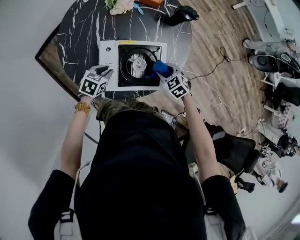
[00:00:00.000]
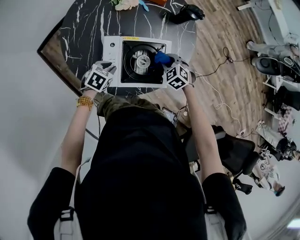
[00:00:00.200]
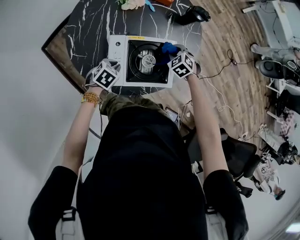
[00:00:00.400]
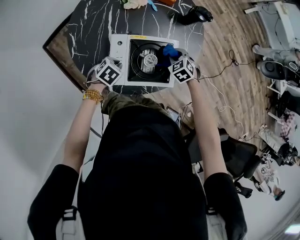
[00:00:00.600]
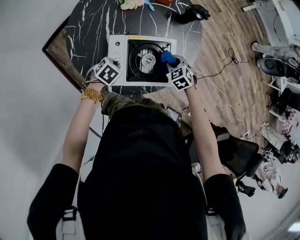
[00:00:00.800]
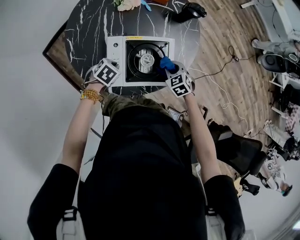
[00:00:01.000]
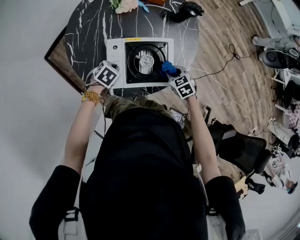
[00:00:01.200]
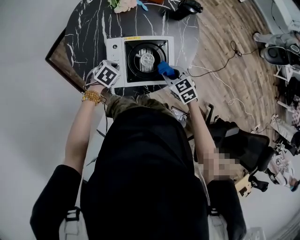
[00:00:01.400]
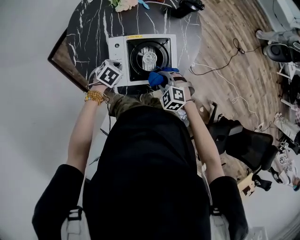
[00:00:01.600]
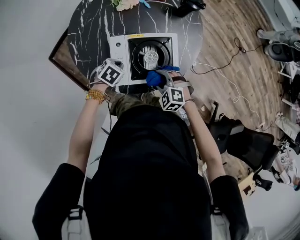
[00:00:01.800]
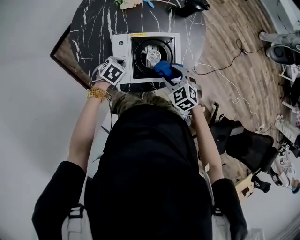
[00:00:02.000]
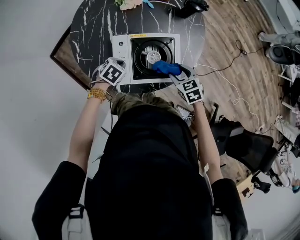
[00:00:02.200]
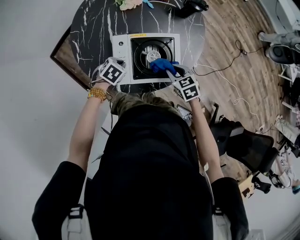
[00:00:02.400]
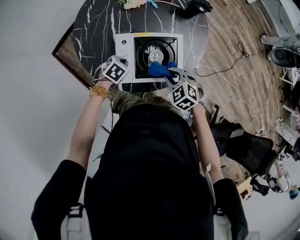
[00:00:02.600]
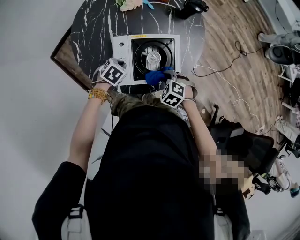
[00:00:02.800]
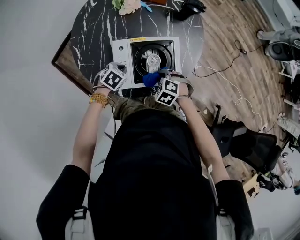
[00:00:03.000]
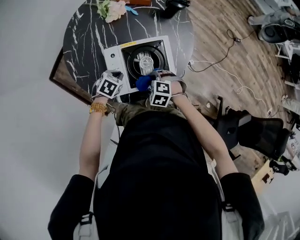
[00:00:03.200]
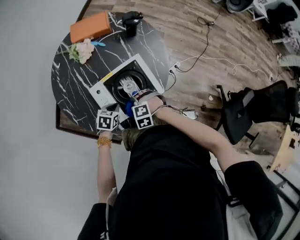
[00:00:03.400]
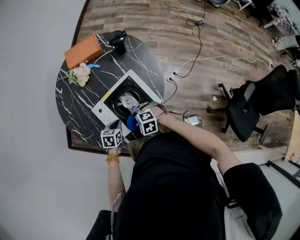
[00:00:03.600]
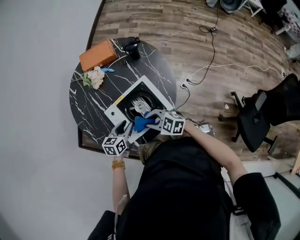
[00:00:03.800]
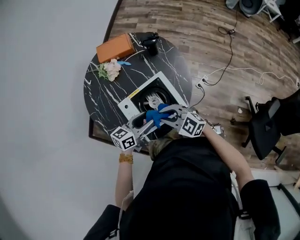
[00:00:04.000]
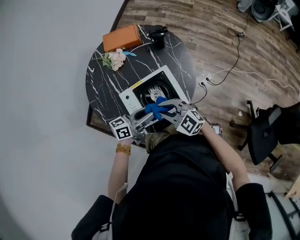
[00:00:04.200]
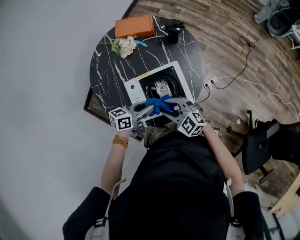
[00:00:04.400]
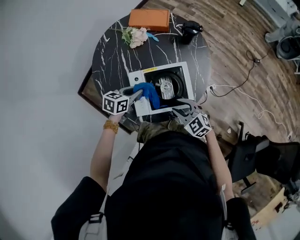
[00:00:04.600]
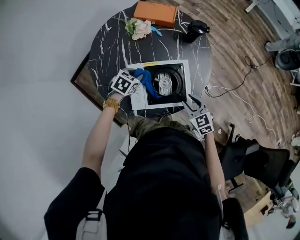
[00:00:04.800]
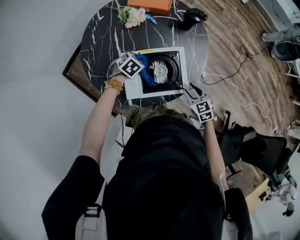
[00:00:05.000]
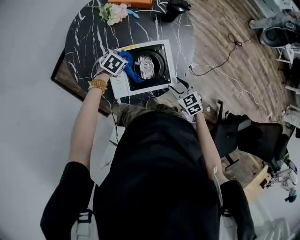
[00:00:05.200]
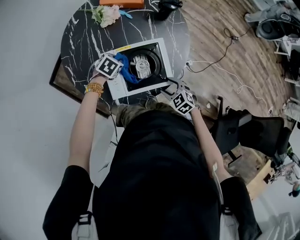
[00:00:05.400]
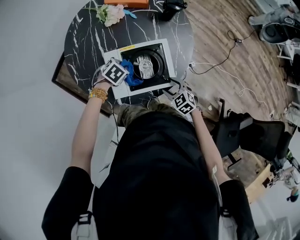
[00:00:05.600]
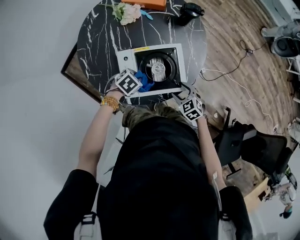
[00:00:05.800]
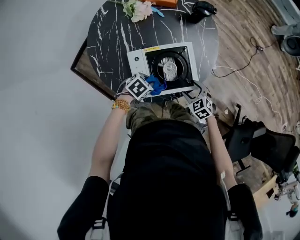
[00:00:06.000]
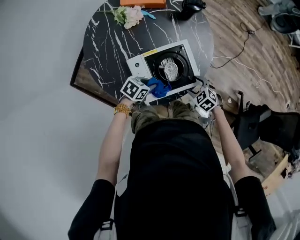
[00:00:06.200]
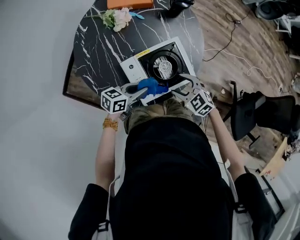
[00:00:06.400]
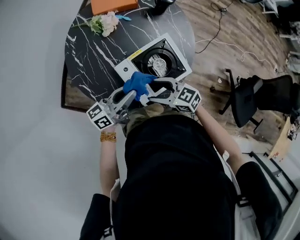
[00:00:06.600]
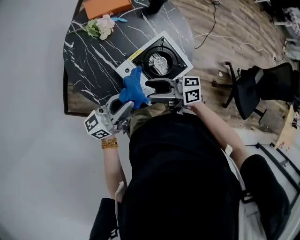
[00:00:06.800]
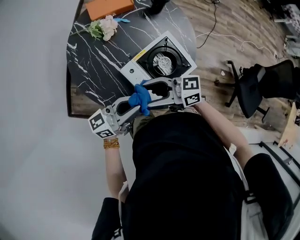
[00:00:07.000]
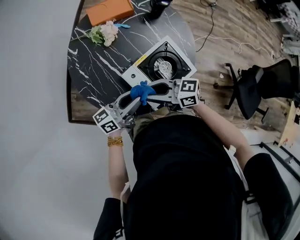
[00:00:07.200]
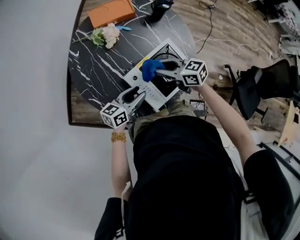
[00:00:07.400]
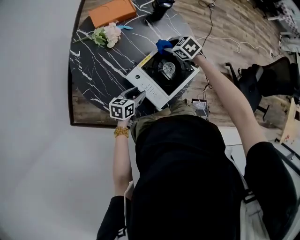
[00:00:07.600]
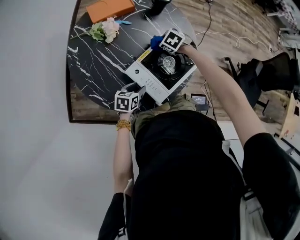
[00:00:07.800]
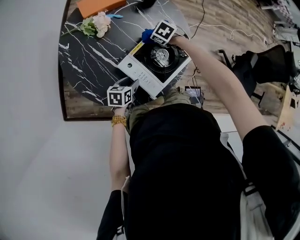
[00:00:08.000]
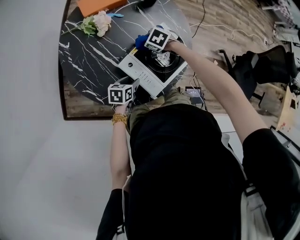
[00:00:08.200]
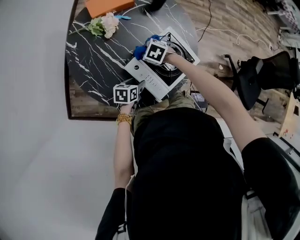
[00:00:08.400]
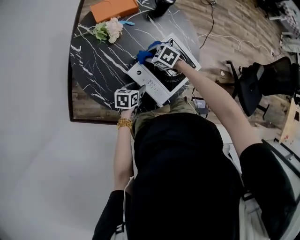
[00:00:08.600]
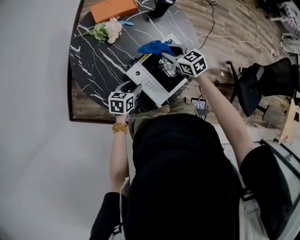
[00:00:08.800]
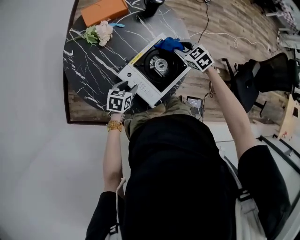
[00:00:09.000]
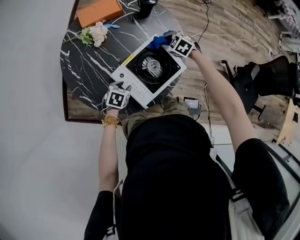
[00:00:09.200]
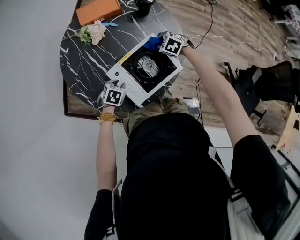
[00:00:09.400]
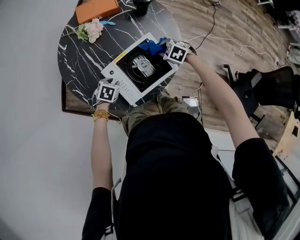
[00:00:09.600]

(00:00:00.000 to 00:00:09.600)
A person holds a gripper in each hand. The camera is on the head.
00:00:00.000 - 00:00:01.600: The right gripper goes some 10 cm backward and to the left, while the left gripper turns by about 20 degrees.
00:00:01.600 - 00:00:03.200: The right gripper opens, then closes again.
00:00:03.200 - 00:00:04.800: The left gripper travels upward and back again, roughly 15 cm each way, and opens, then closes once more, while the right gripper shifts by some 10 cm, and tilts its fingers about 30 degrees upward.
00:00:04.800 - 00:00:06.400: The left gripper changes place by some 10 cm, and tips its fingers upward by roughly 40 degrees. Meanwhile the right gripper goes downward and returns, some 5 cm each way, and opens.
00:00:06.400 - 00:00:08.000: The right gripper ends up some 20 cm from where it was, swivels about 30 degrees, and closes, while the left gripper heads downward, covering some 10 cm, turns by approximately 20 degrees, and opens its fingers.
00:00:08.000 - 00:00:09.600: The right gripper moves some 10 cm upward and comes back, and rotates some 20 degrees. Meanwhile the left gripper turns by approximately 30 degrees.

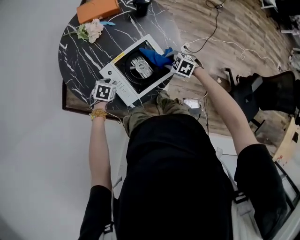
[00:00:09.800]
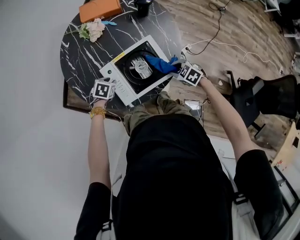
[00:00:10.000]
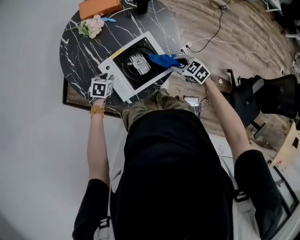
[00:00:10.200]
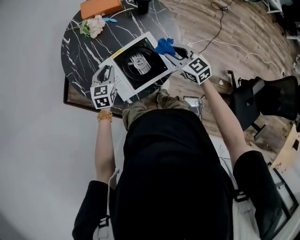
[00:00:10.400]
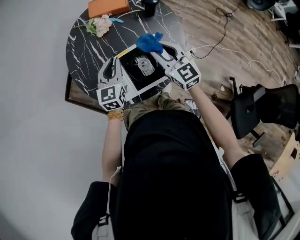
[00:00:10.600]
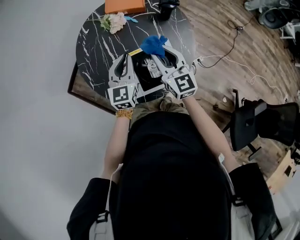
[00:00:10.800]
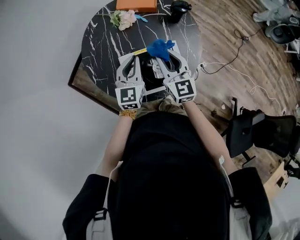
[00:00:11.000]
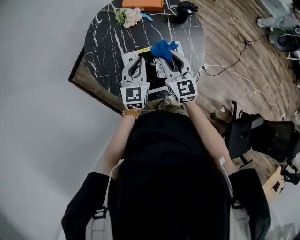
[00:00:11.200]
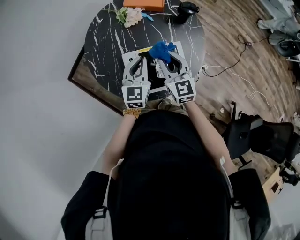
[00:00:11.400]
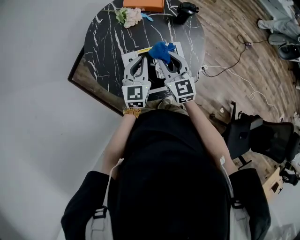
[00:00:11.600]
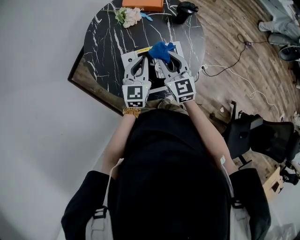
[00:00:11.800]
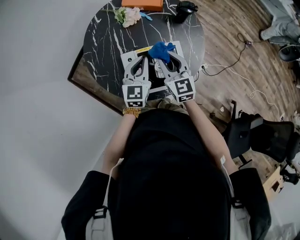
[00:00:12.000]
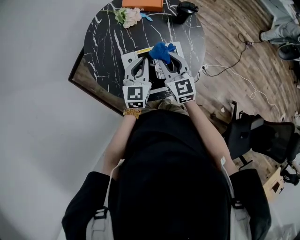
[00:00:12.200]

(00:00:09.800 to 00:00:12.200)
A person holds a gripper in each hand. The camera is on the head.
00:00:09.800 - 00:00:11.000: The two grippers go roughly 25 cm upward. The right gripper tips its fingers upward by approximately 50 degrees; the left gripper tips its fingers upward by roughly 60 degrees, and closes its fingers.
00:00:11.000 - 00:00:12.200: There are only small adjustments of the grippers.

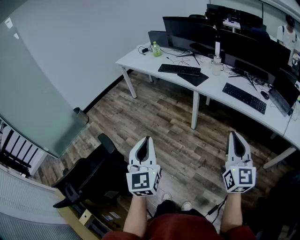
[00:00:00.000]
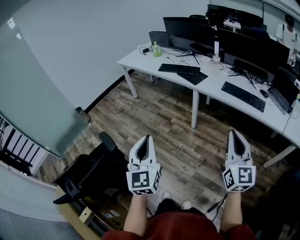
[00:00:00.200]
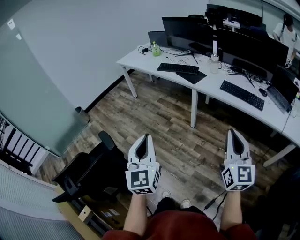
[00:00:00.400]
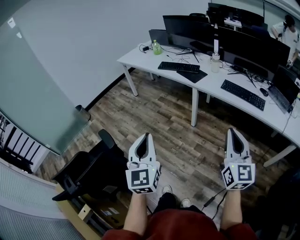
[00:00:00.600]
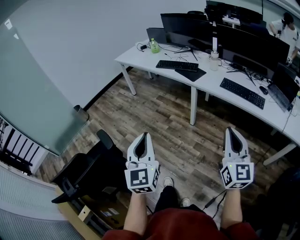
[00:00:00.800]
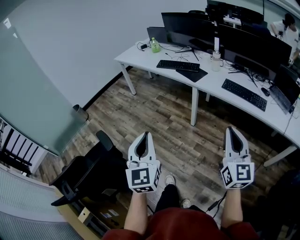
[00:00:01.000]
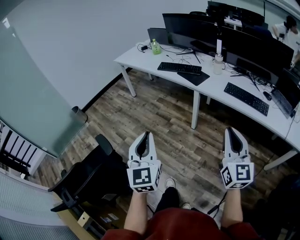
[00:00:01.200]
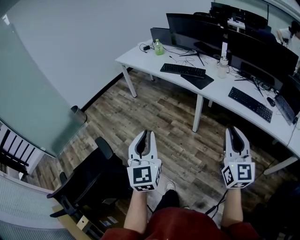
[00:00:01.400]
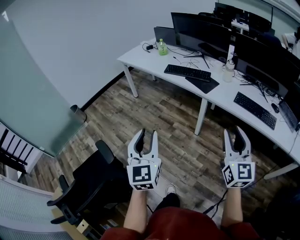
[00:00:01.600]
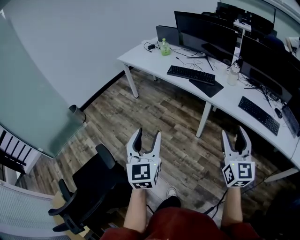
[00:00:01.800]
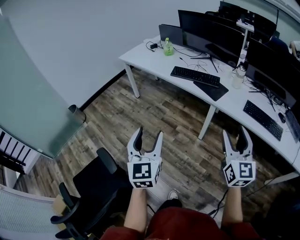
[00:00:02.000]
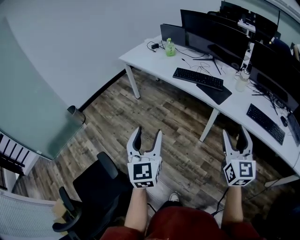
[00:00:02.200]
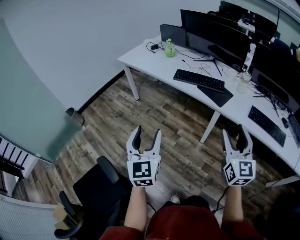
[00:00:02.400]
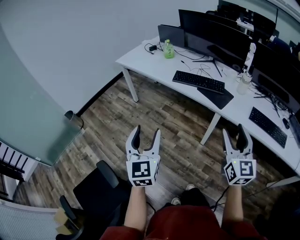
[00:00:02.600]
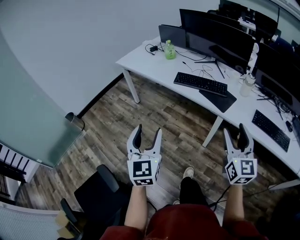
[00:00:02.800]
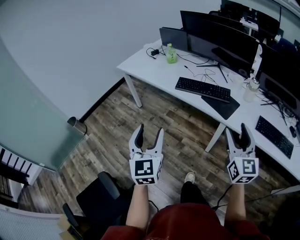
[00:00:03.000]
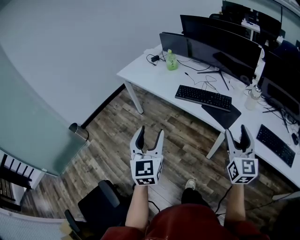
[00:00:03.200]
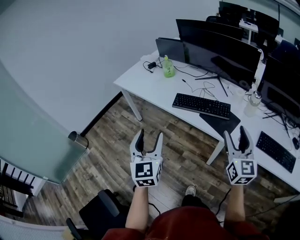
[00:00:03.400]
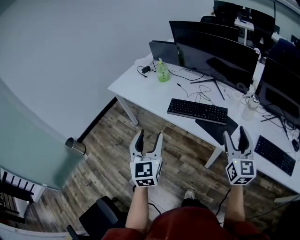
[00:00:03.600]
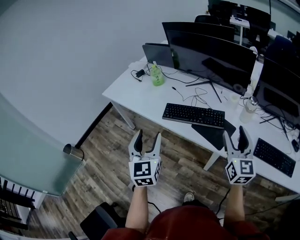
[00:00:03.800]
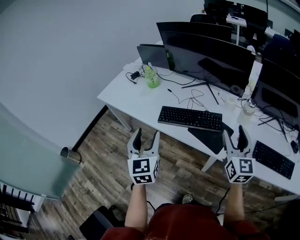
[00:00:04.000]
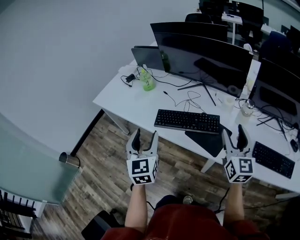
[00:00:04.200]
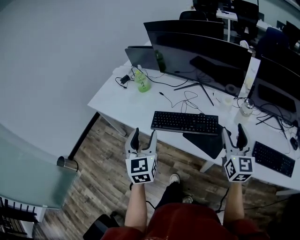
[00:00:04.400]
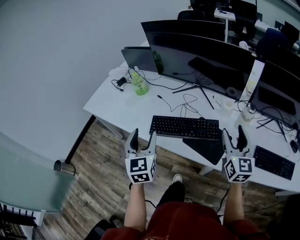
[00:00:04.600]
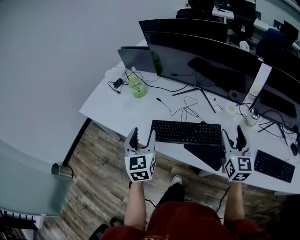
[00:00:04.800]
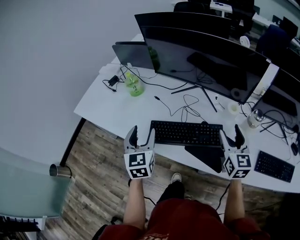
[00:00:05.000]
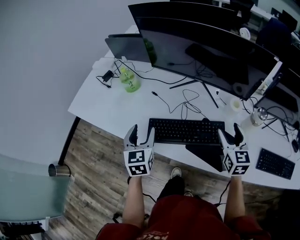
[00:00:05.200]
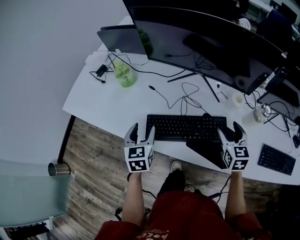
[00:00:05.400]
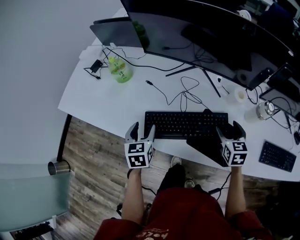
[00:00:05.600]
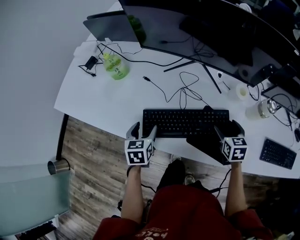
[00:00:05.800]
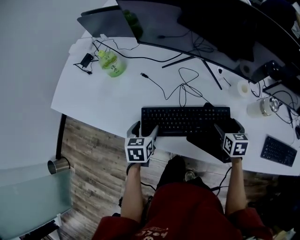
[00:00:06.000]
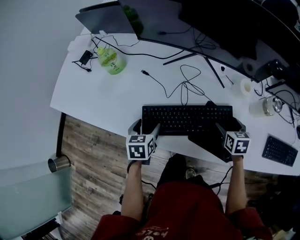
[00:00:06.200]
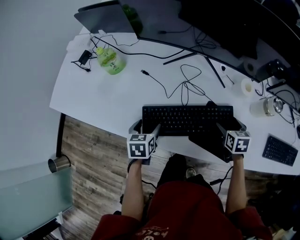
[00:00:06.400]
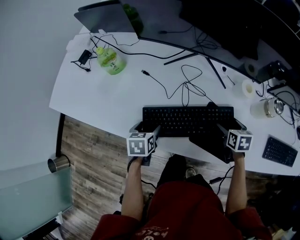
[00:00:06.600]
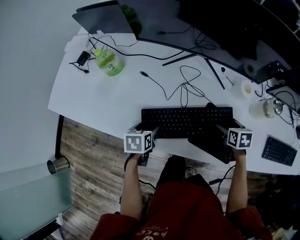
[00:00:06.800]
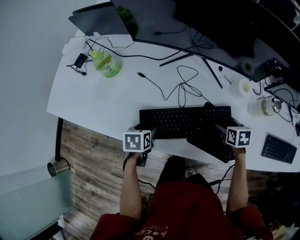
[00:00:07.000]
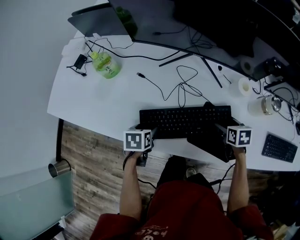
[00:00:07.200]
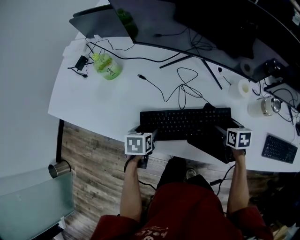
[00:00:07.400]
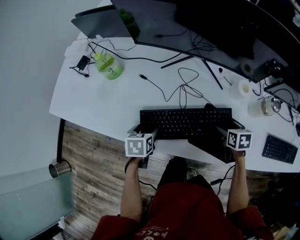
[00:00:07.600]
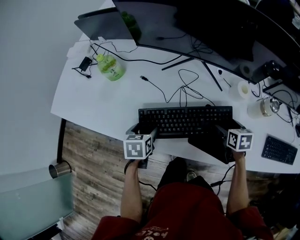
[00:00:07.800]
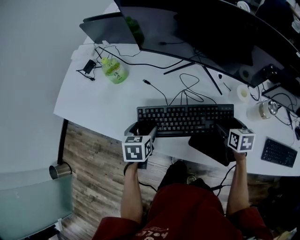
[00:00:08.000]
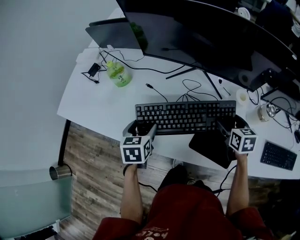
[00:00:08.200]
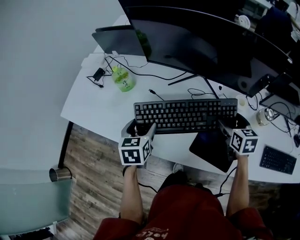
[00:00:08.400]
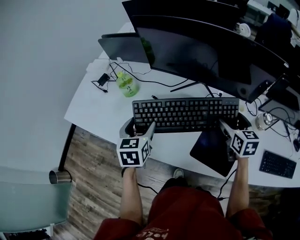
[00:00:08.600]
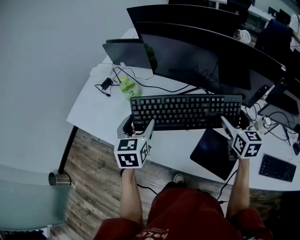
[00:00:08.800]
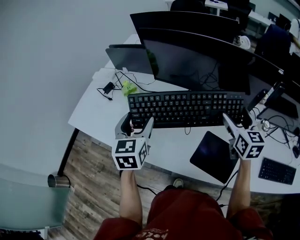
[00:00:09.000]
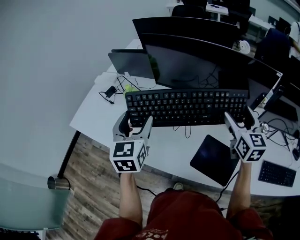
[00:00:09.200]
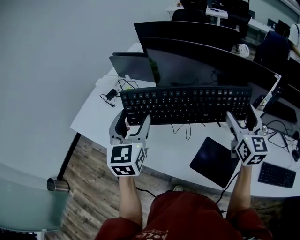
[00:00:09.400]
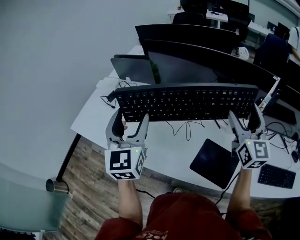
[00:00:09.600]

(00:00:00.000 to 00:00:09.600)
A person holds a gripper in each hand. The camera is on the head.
00:00:00.000 - 00:00:01.600: The two grippers go approximately 15 cm forward. The right gripper opens its fingers.
00:00:01.600 - 00:00:03.200: The two grippers go approximately 35 cm forward. The left gripper opens.
00:00:03.200 - 00:00:04.800: The grippers both shift forward by roughly 35 cm.
00:00:04.800 - 00:00:06.400: The left gripper is displaced downward and forward by about 30 cm, and tips its fingers downward by about 40 degrees. The right gripper moves downward, some 30 cm, and points its fingers some 50 degrees further downward.
00:00:06.400 - 00:00:08.000: Both grippers travel together upward, some 5 cm.
00:00:08.000 - 00:00:09.600: The grippers both shift upward by approximately 35 cm. The left gripper tips its fingers upward by about 50 degrees; the right gripper angles its fingers upward, by approximately 60 degrees.

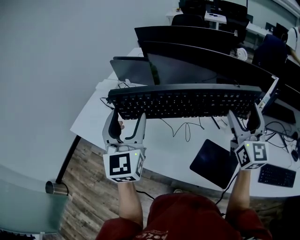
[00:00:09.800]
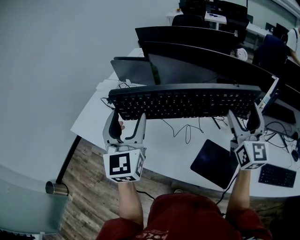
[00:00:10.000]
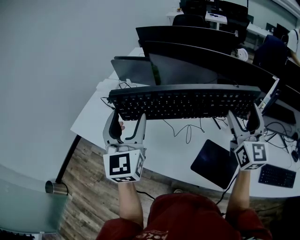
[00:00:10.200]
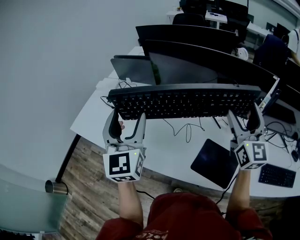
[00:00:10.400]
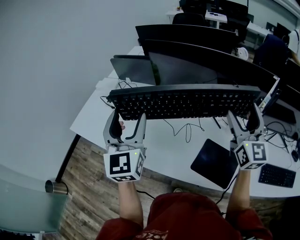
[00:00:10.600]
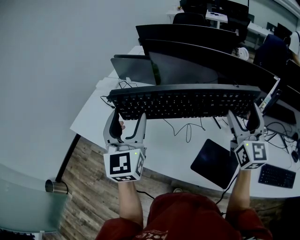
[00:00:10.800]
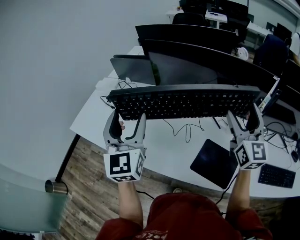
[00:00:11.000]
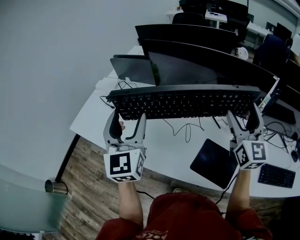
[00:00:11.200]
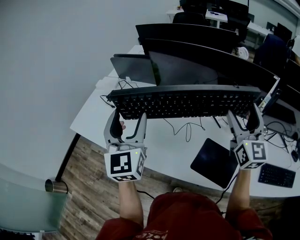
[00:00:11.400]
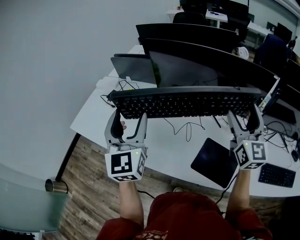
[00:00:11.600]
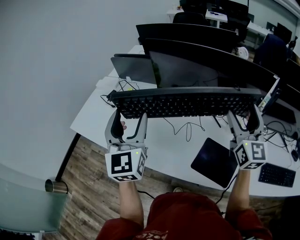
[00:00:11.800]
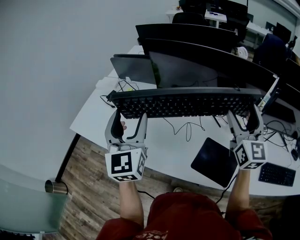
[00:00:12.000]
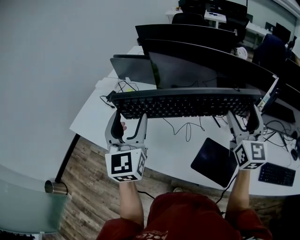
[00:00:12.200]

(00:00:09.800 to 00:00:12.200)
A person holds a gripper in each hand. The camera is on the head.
00:00:09.800 - 00:00:12.200: The two grippers keep their place.
